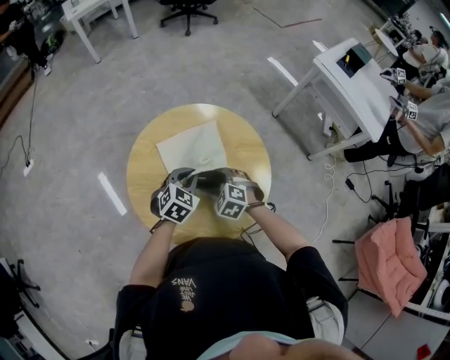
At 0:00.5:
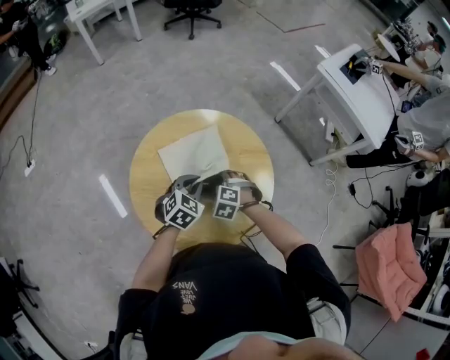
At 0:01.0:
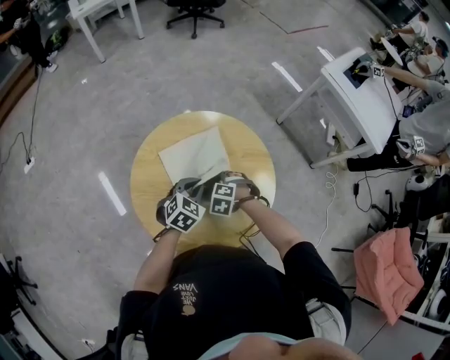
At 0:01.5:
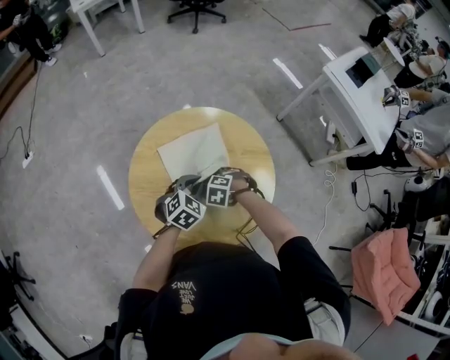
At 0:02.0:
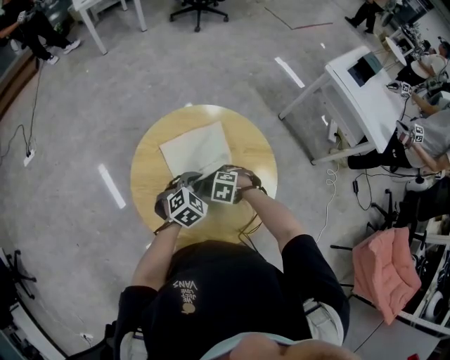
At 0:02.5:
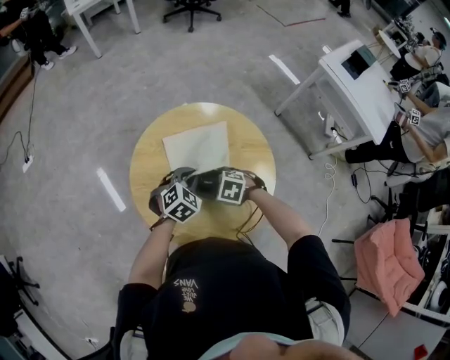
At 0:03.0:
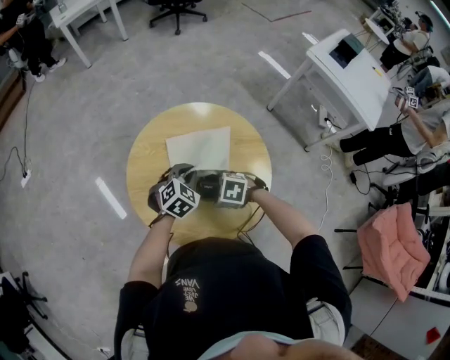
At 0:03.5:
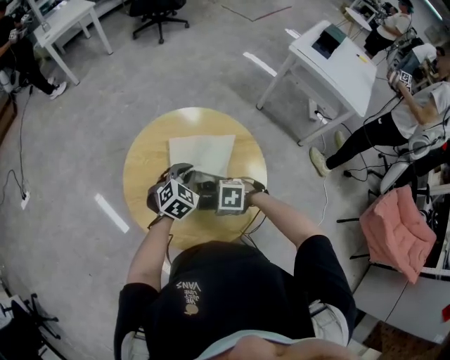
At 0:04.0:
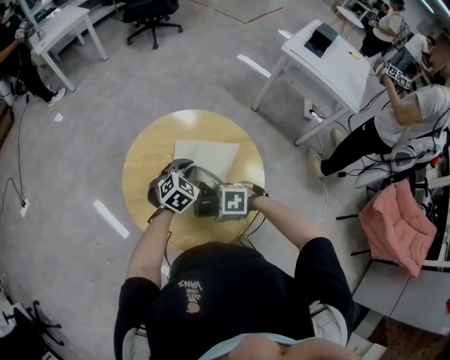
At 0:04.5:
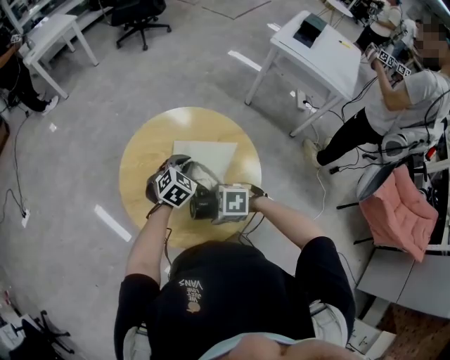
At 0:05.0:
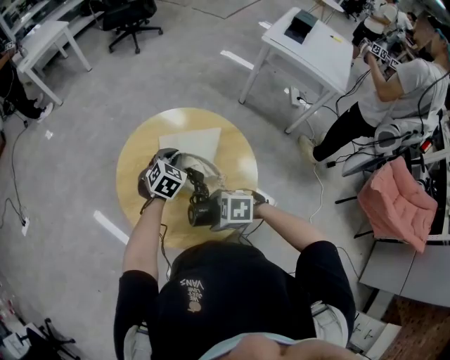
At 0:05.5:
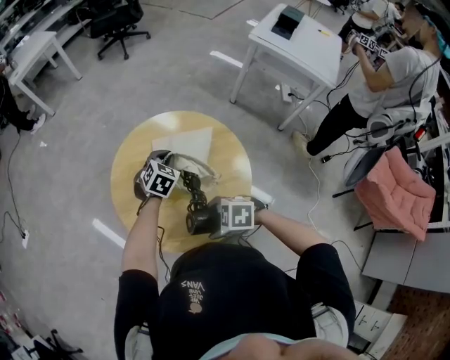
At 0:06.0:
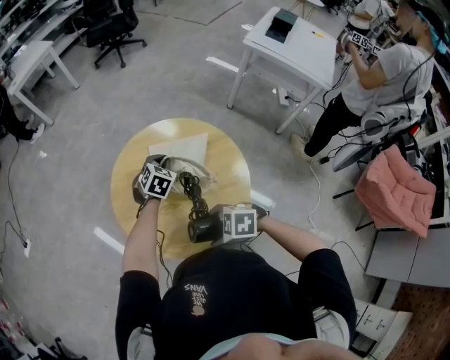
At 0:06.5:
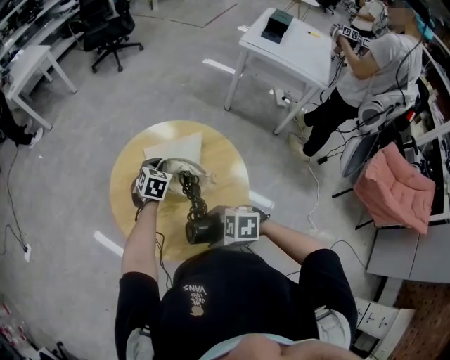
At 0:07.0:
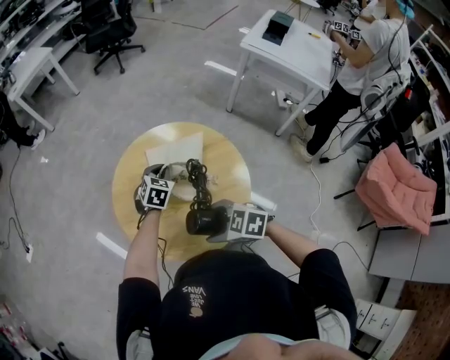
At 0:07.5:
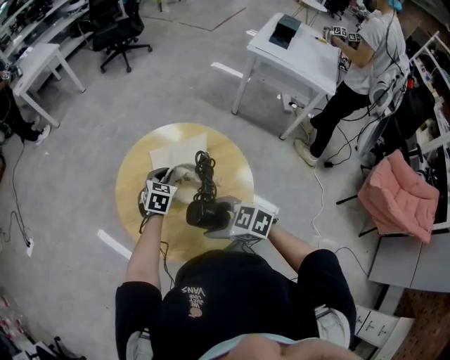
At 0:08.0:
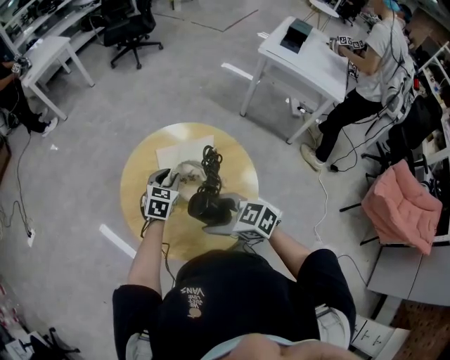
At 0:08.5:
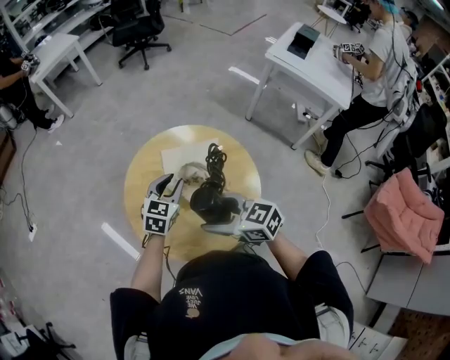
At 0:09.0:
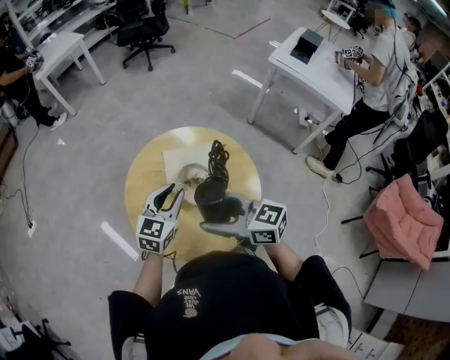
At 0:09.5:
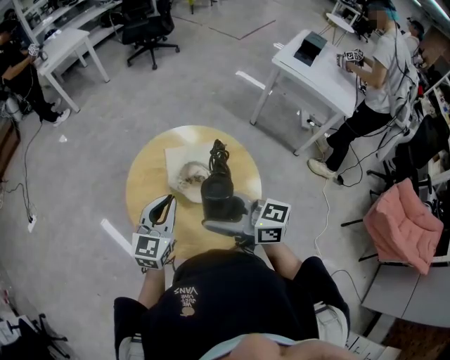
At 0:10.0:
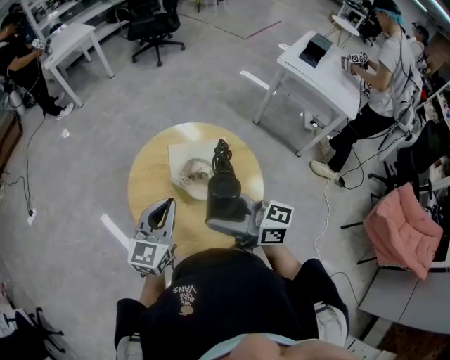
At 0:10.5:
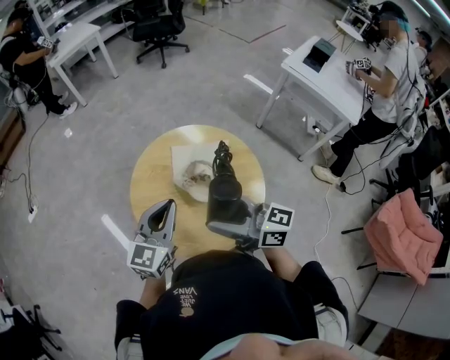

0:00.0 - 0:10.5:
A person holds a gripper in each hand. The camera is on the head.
0:00.0 - 0:02.0: The right gripper changes place by roughly 5 cm, and rotates some 20 degrees.
0:02.0 - 0:04.0: The right gripper ends up some 15 cm from where it was.
0:04.0 - 0:06.5: The right gripper is displaced upward by roughly 5 cm, and changes its angle by approximately 20 degrees. The left gripper moves roughly 5 cm.
0:06.5 - 0:08.5: The right gripper moves upward and forward, approximately 10 cm, and changes its angle by roughly 40 degrees, while the left gripper is displaced upward and backward by roughly 10 cm, changes its angle by approximately 20 degrees, and opens up.
0:08.5 - 0:10.5: The left gripper heads upward, backward and to the left, covering approximately 15 cm, changes its angle by roughly 20 degrees, and closes its fingers; the right gripper travels upward by about 10 cm, and rotates about 30 degrees.

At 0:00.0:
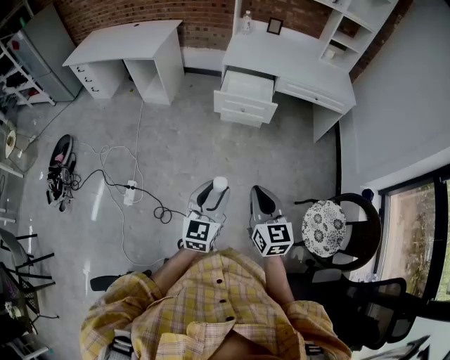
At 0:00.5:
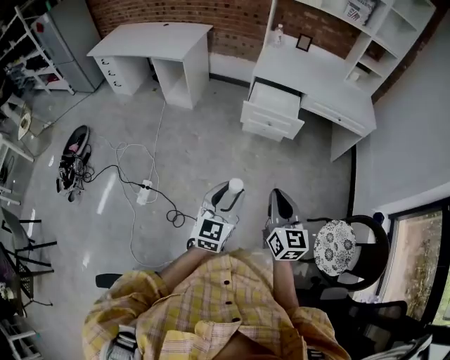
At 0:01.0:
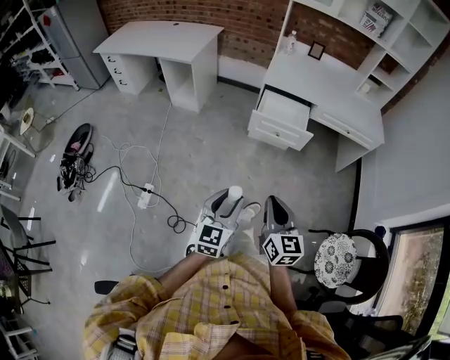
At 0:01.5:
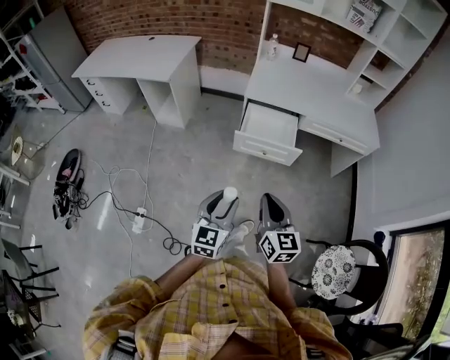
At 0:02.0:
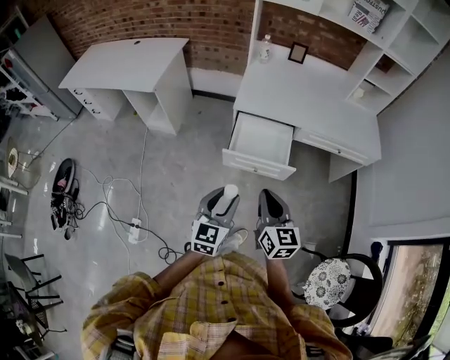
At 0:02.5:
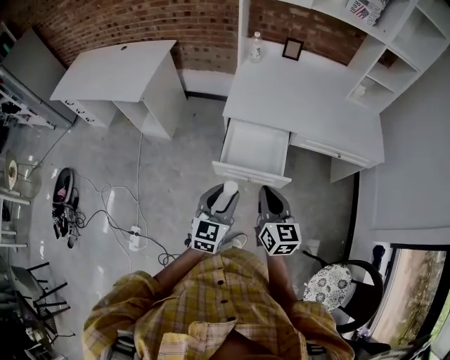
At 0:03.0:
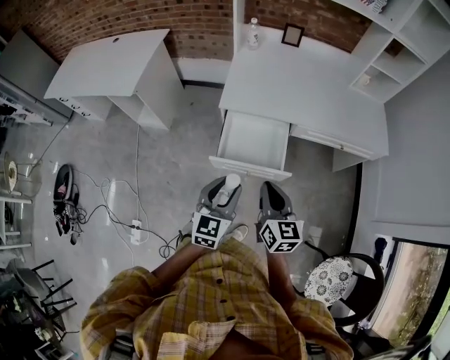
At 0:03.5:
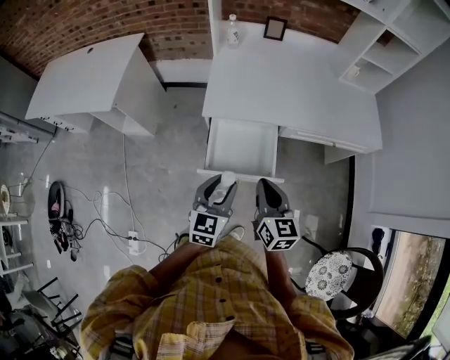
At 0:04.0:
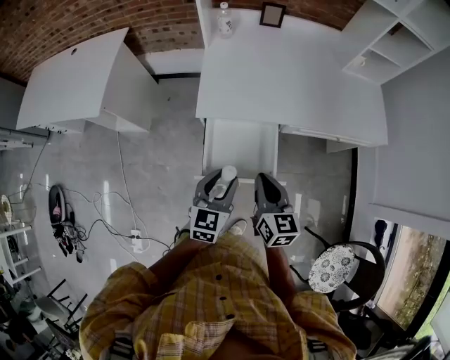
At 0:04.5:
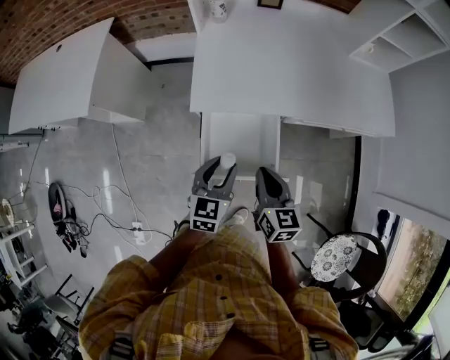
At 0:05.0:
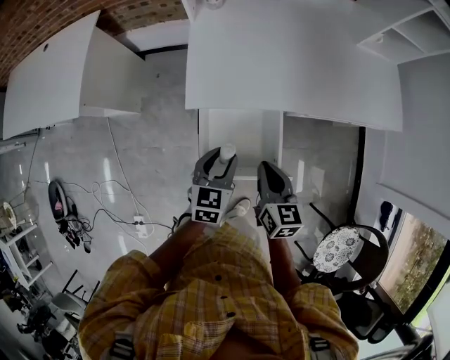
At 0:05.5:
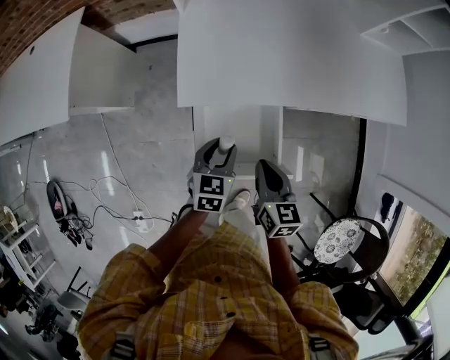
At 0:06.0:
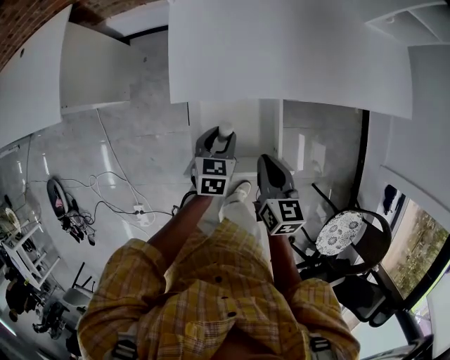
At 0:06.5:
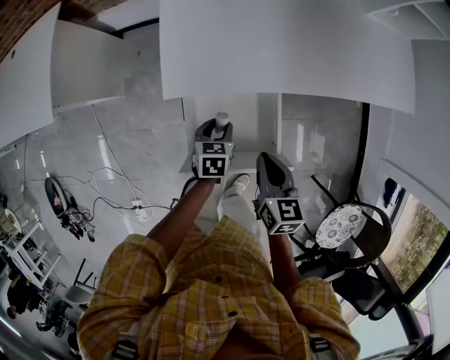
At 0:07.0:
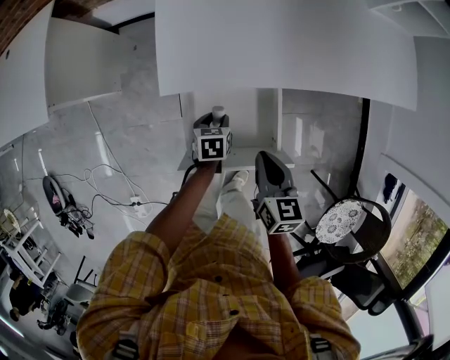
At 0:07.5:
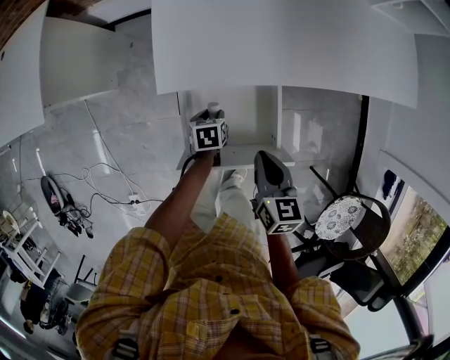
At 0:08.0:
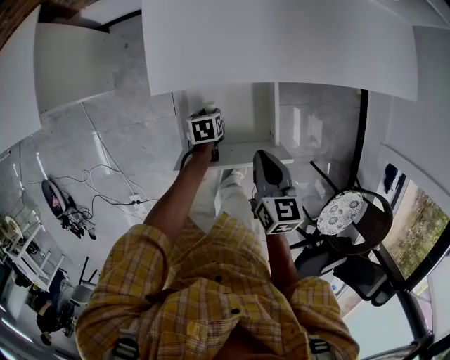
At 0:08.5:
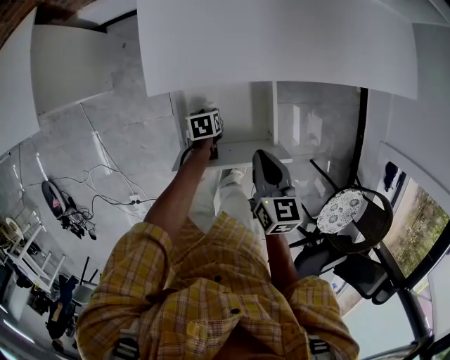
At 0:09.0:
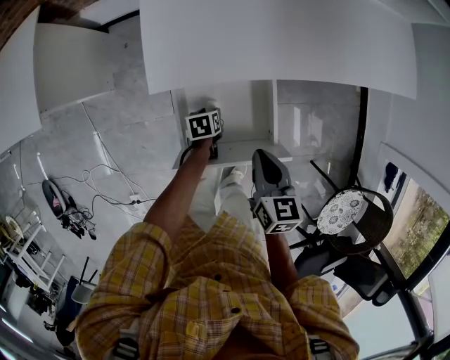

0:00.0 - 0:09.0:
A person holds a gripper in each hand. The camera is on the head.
0:00.0 - 0:02.0: The grippers both shift forward by some 40 cm.
0:02.0 - 0:04.5: The right gripper moves forward and downward, roughly 35 cm. The left gripper moves forward, approximately 35 cm.
0:04.5 - 0:07.0: The left gripper is displaced downward by roughly 30 cm, and tilts its fingers approximately 30 degrees downward. The right gripper shifts about 10 cm downward.
0:07.0 - 0:09.0: The left gripper goes approximately 5 cm downward.

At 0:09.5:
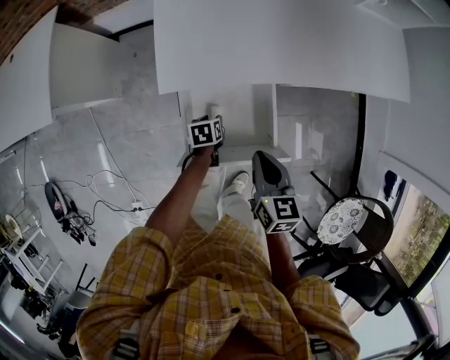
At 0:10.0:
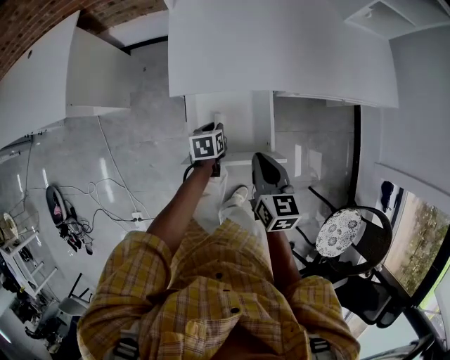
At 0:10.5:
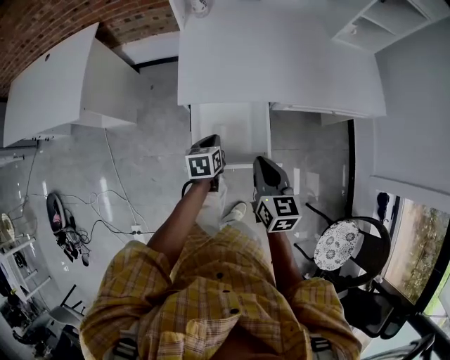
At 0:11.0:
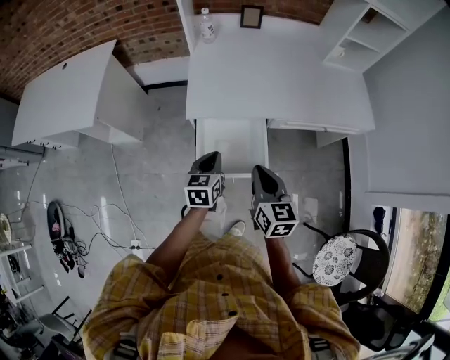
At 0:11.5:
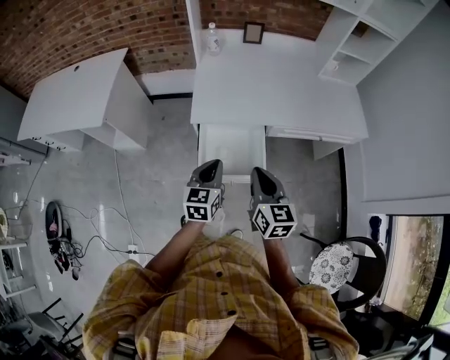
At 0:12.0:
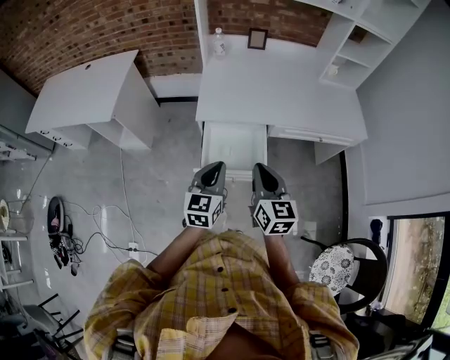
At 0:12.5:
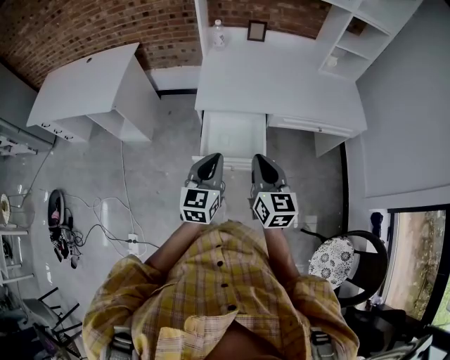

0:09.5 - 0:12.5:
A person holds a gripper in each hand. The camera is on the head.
0:09.5 - 0:11.0: The left gripper is displaced upward by approximately 30 cm, points its fingers about 30 degrees further upward, and closes its fingers. Meanwhile the right gripper is displaced upward and backward by about 20 cm.
0:11.0 - 0:12.5: The right gripper travels backward and upward by some 15 cm. Meanwhile the left gripper is displaced backward and upward by about 20 cm, and changes its angle by about 20 degrees.

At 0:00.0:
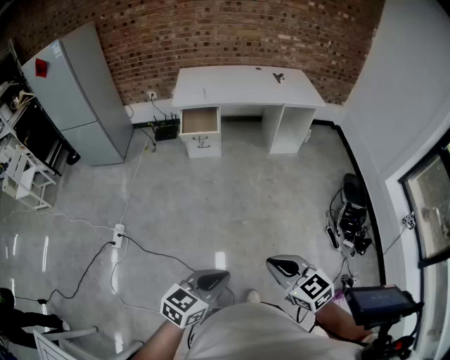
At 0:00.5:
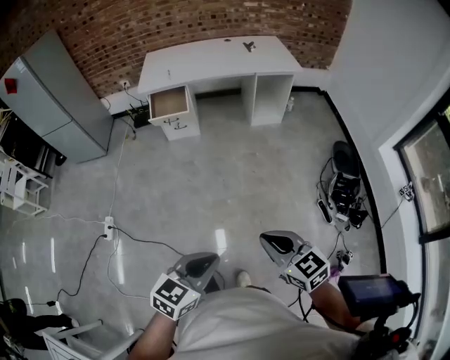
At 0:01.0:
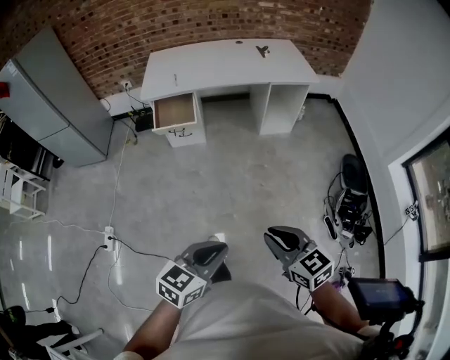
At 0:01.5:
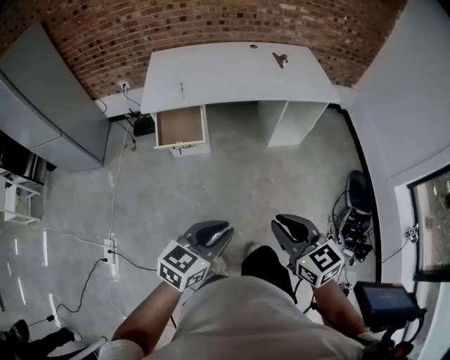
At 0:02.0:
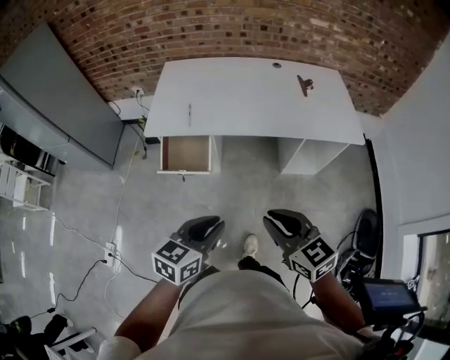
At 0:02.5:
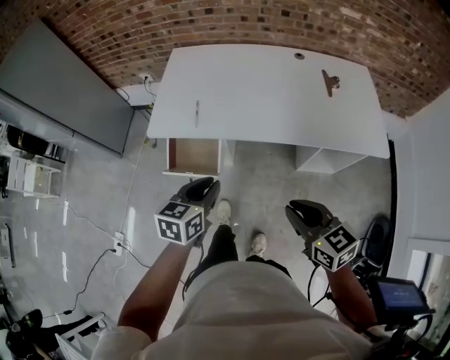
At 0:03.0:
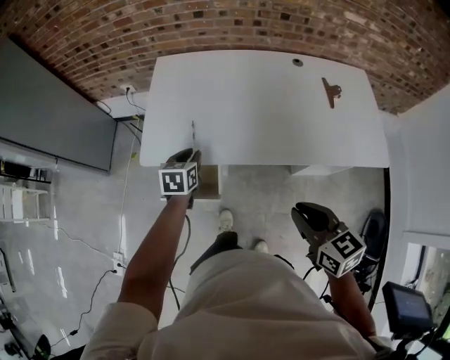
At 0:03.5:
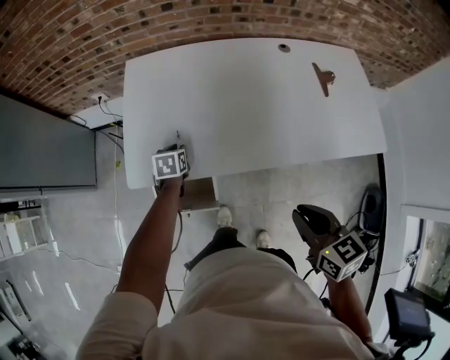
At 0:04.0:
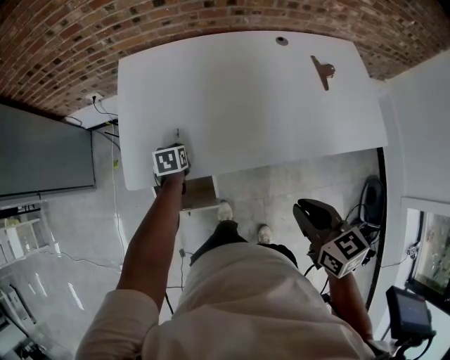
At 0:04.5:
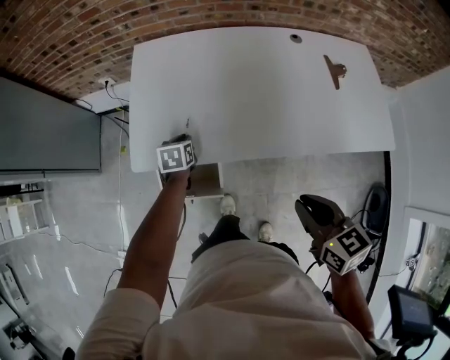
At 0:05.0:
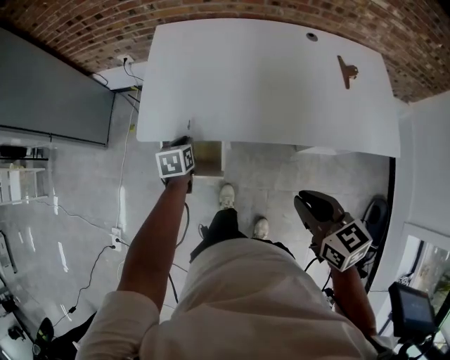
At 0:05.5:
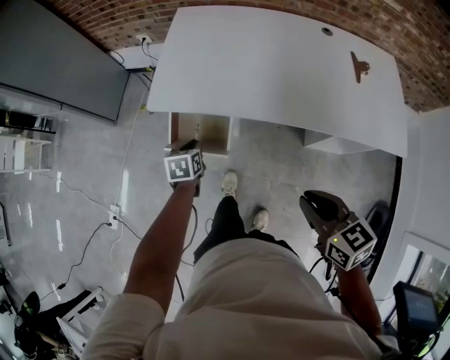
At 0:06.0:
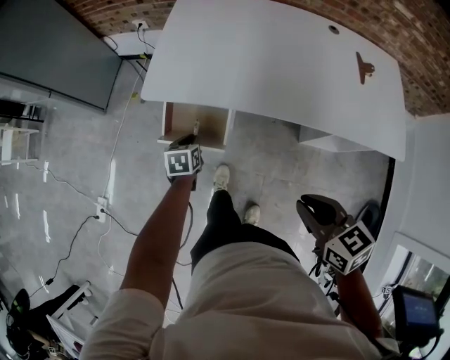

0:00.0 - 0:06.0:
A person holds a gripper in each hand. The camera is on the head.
0:00.0 - 0:02.0: Both grippers are carried forward, approximately 70 cm.
0:02.0 - 0:04.0: The right gripper travels forward by some 30 cm, and swivels about 30 degrees; the left gripper is displaced forward and downward by some 60 cm, and angles its fingers downward, by some 30 degrees.
0:04.0 - 0:06.0: The right gripper moves backward, roughly 15 cm, and swivels some 20 degrees; the left gripper shifts roughly 25 cm backward.
